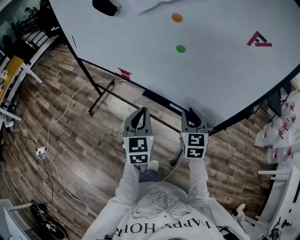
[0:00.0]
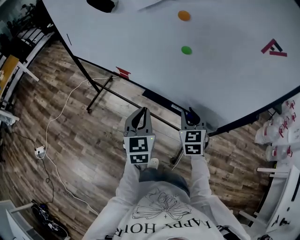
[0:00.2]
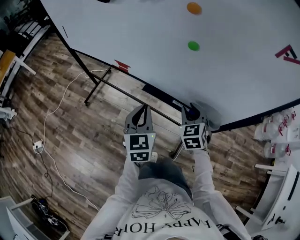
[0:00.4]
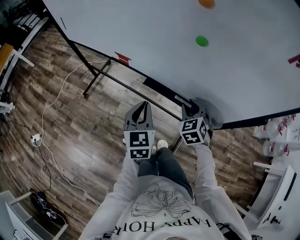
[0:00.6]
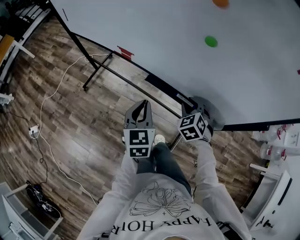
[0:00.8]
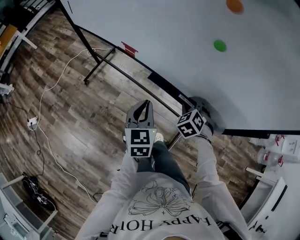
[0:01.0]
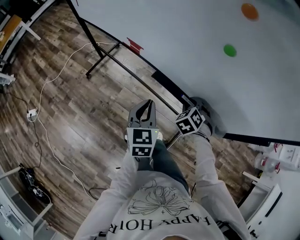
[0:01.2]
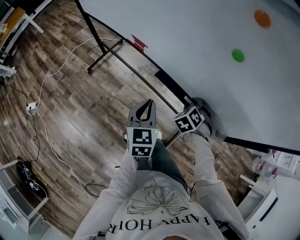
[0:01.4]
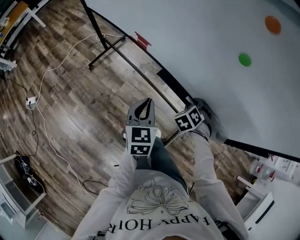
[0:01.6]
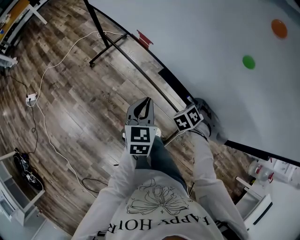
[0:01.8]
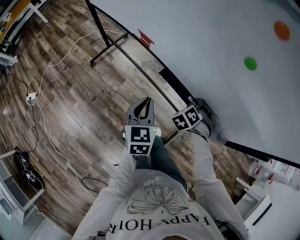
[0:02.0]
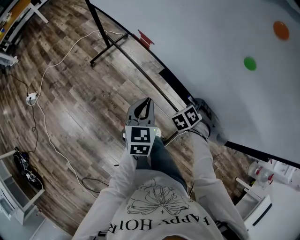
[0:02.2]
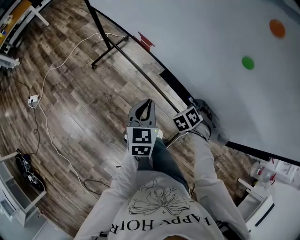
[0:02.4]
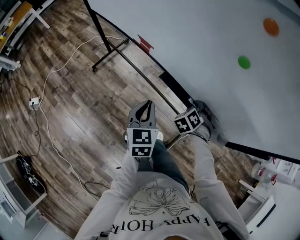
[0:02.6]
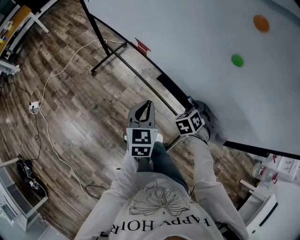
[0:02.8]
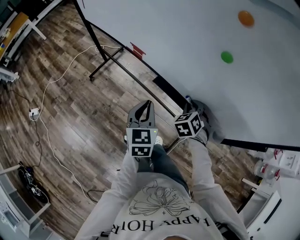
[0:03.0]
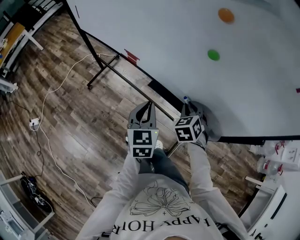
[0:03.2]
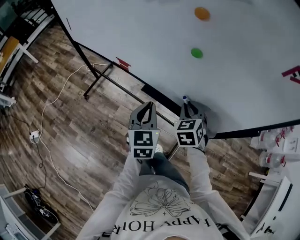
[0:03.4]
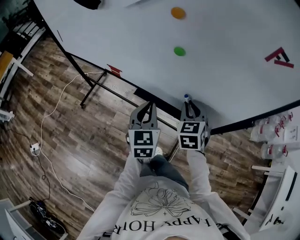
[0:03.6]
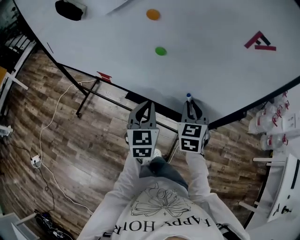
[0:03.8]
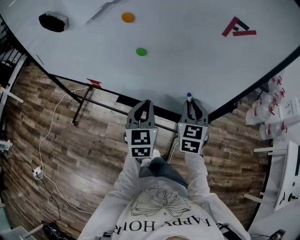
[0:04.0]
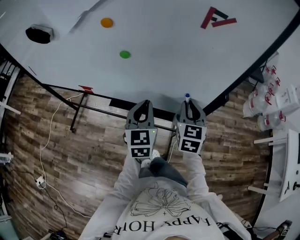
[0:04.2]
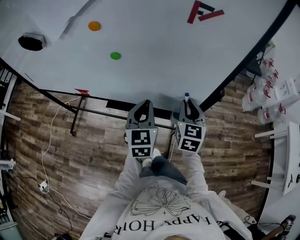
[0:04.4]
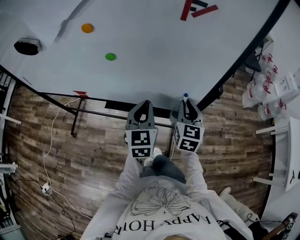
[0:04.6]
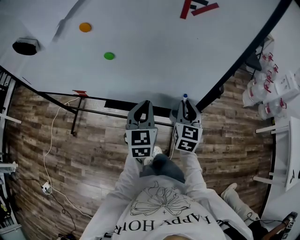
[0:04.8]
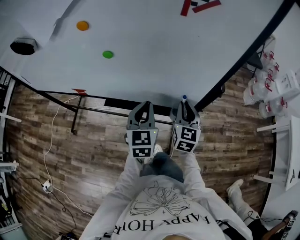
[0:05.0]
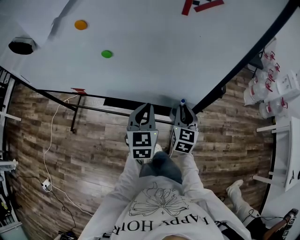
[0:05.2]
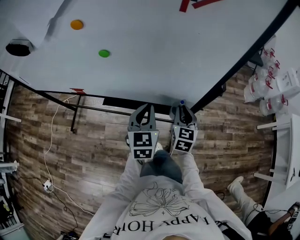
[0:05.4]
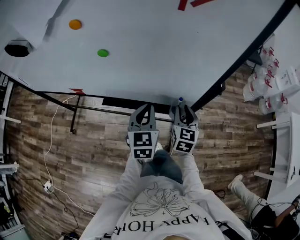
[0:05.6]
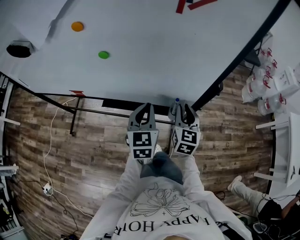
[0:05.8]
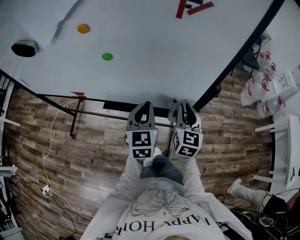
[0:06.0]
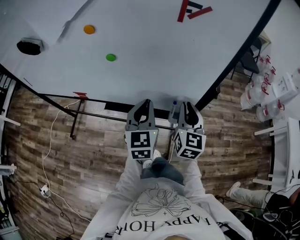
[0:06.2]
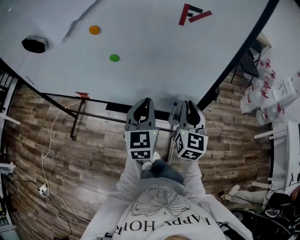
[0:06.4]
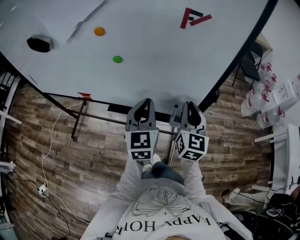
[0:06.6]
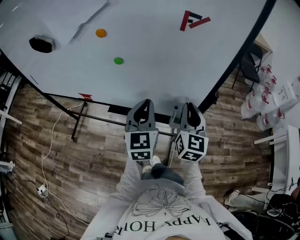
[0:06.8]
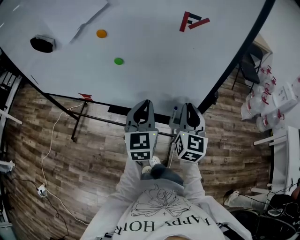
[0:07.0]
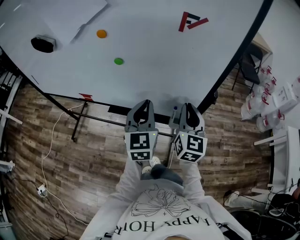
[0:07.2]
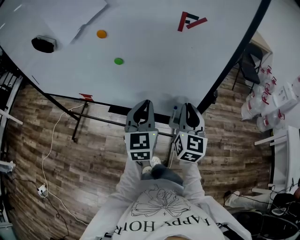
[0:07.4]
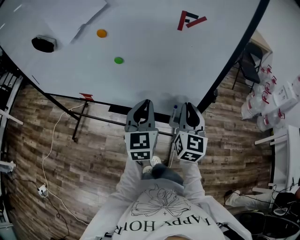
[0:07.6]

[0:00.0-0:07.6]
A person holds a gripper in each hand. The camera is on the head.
0.0 to 1.6 s: The left gripper travels downward and forward by some 15 cm. The right gripper is displaced downward and forward by about 25 cm, and points its fingers about 40 degrees further downward.
1.6 to 3.0 s: The right gripper is displaced upward by some 5 cm.
3.0 to 4.6 s: The grippers both shift to the right and upward by about 25 cm. The right gripper rotates around the line of its fingers by some 50 degrees, clockwise from behind; the left gripper turns by about 30 degrees.
4.6 to 6.0 s: The right gripper moves roughly 10 cm downward and comes back.
6.0 to 7.6 s: Both grippers move upward, about 10 cm.

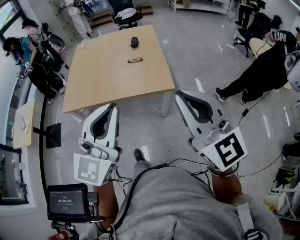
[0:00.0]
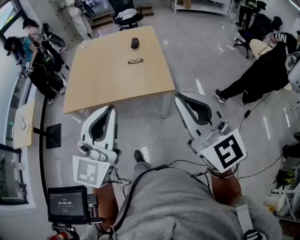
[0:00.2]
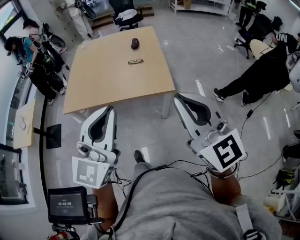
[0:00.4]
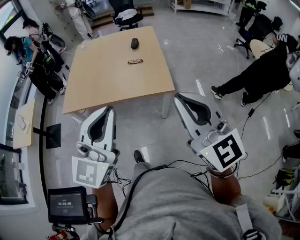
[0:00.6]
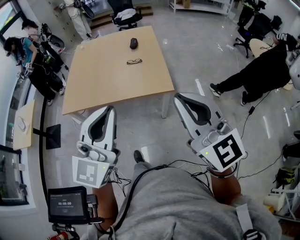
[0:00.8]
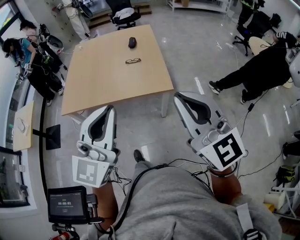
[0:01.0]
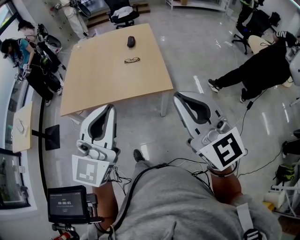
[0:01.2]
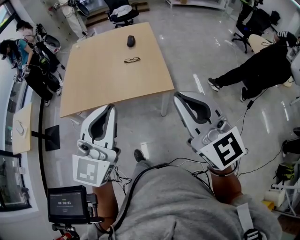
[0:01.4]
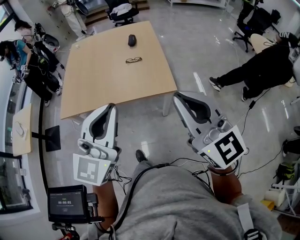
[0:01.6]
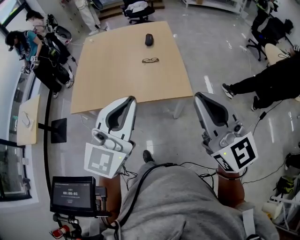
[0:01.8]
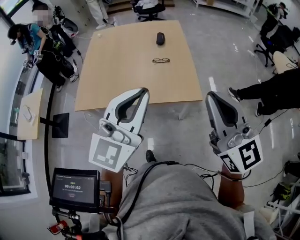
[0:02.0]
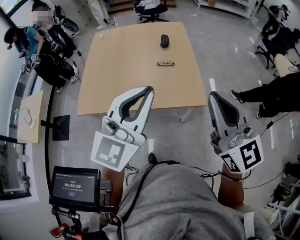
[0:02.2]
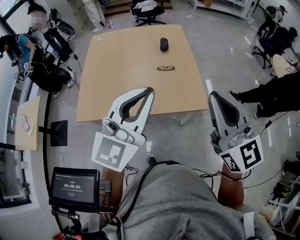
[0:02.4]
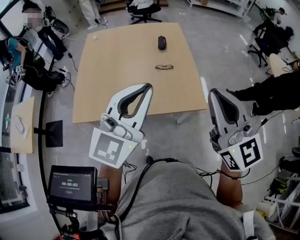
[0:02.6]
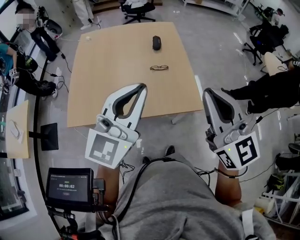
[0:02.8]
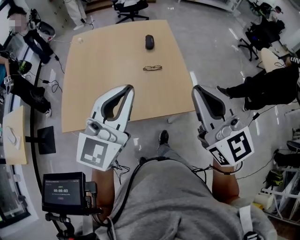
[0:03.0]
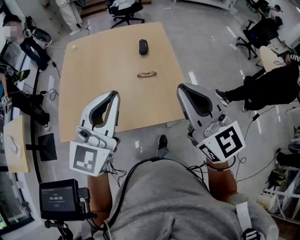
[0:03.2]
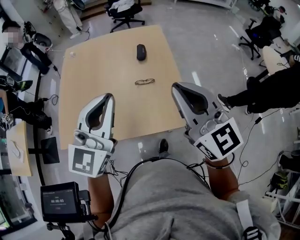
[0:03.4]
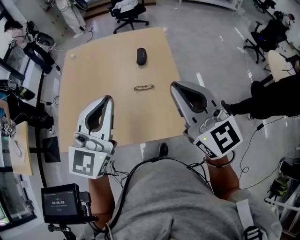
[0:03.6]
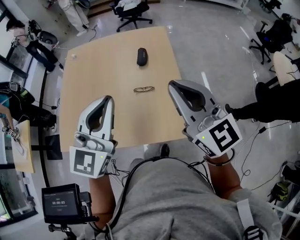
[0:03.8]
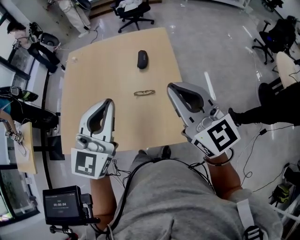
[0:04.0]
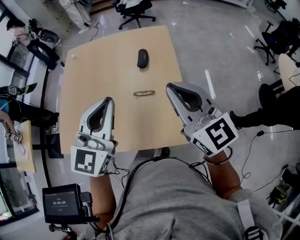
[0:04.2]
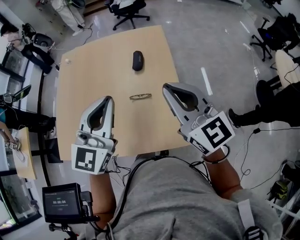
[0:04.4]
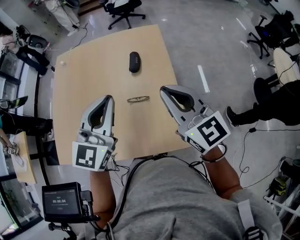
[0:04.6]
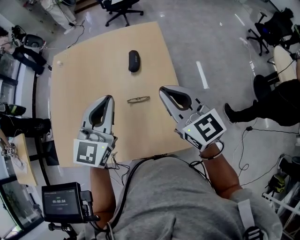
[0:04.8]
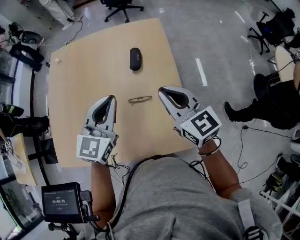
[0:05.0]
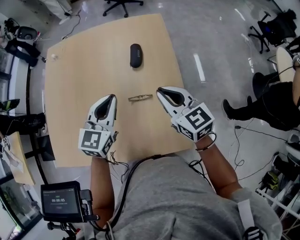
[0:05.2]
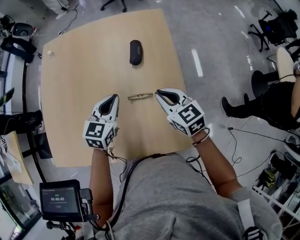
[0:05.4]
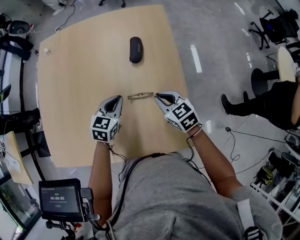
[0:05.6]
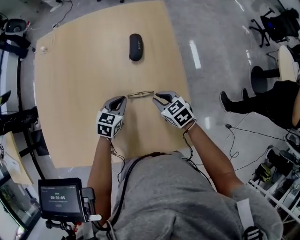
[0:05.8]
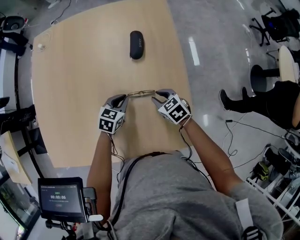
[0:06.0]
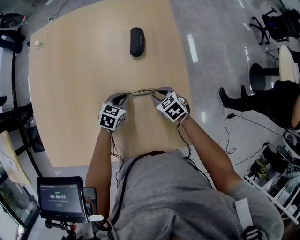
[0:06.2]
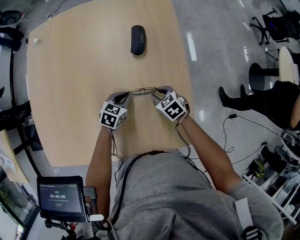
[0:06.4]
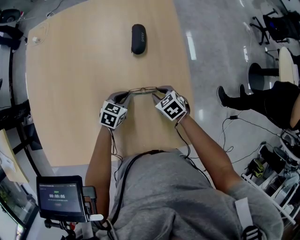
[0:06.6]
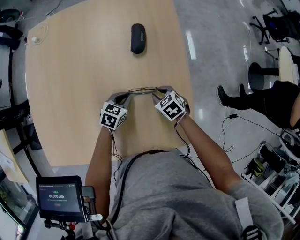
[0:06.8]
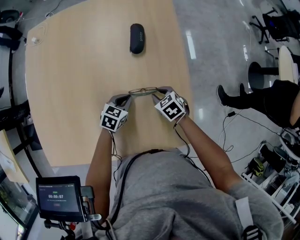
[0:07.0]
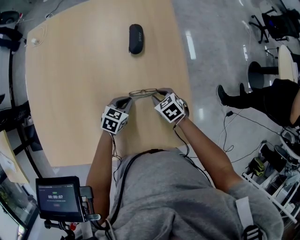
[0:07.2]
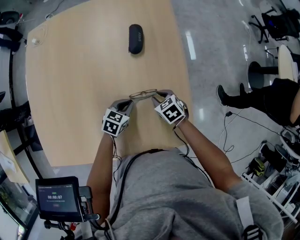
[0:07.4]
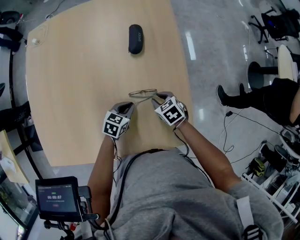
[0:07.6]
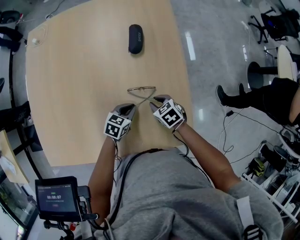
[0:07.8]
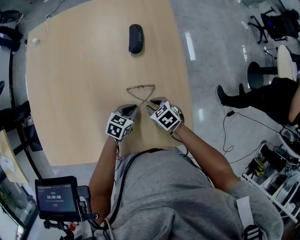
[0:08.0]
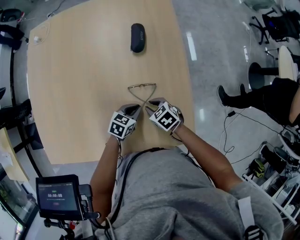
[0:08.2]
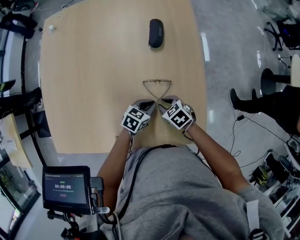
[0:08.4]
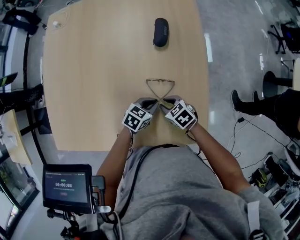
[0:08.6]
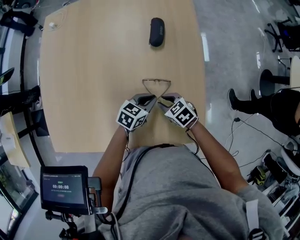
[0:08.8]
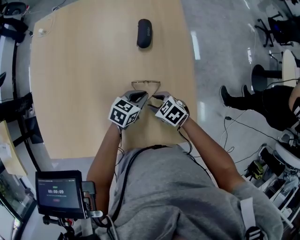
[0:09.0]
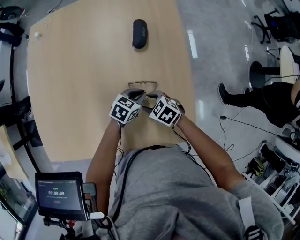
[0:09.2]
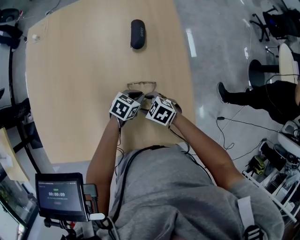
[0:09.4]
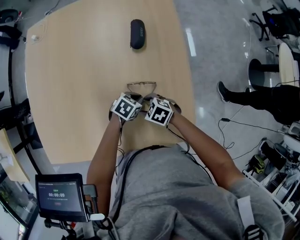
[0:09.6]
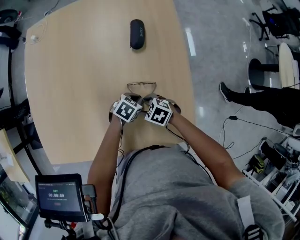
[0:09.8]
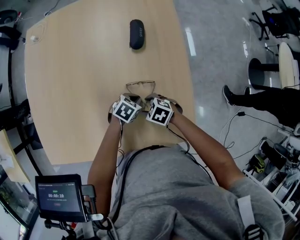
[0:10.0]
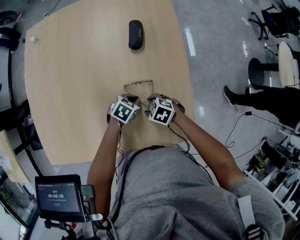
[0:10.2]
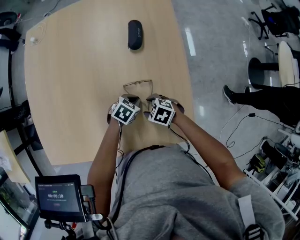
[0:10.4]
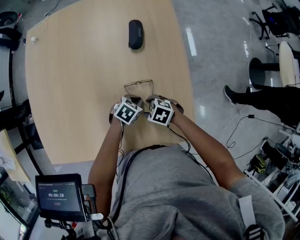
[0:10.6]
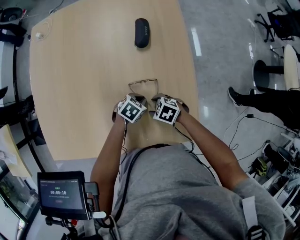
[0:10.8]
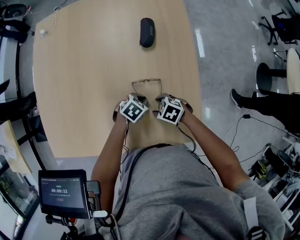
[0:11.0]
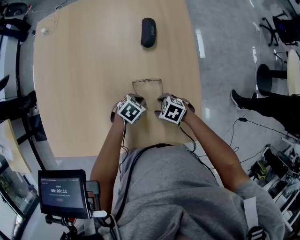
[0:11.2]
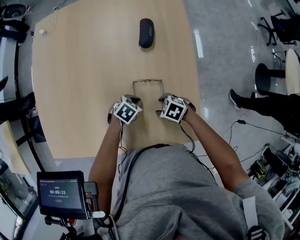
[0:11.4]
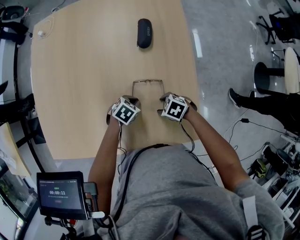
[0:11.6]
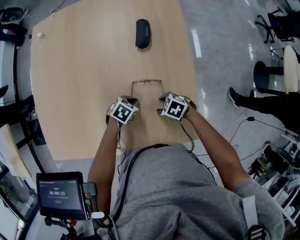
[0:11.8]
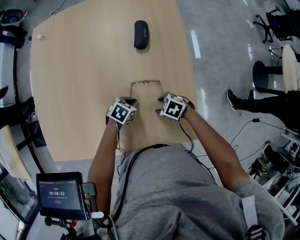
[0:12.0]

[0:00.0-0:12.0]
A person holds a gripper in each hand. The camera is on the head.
0.0 to 1.6 s: The two grippers go approximately 5 cm forward.
1.6 to 3.0 s: Both grippers travel together forward and to the left, approximately 30 cm.
3.0 to 4.4 s: Both grippers travel together forward and to the right, about 30 cm.
4.4 to 6.0 s: The two grippers go approximately 40 cm downward. The right gripper tips its fingers downward by approximately 50 degrees, while the left gripper points its fingers about 40 degrees further downward.
6.0 to 7.6 s: The left gripper is displaced backward by approximately 5 cm; the right gripper shifts by about 5 cm.
7.6 to 9.0 s: The right gripper changes place by approximately 5 cm. The left gripper ends up some 5 cm from where it was.
9.0 to 10.4 s: The left gripper travels downward by roughly 5 cm, and changes its angle by some 20 degrees.
10.4 to 12.0 s: The grippers stay close to where they were, moving slightly.

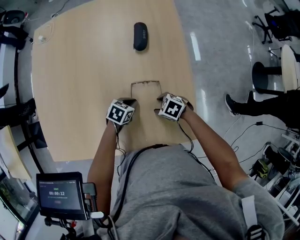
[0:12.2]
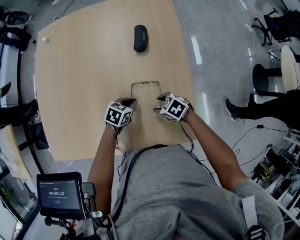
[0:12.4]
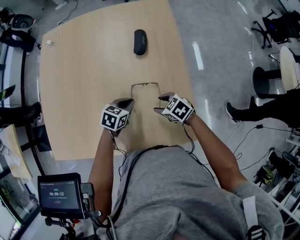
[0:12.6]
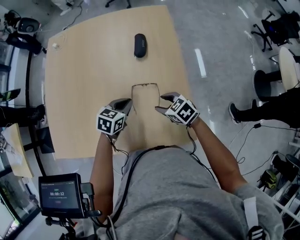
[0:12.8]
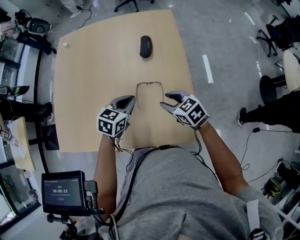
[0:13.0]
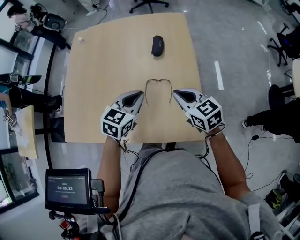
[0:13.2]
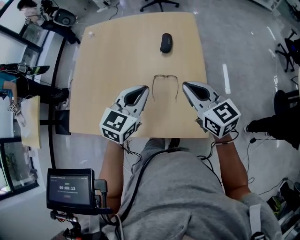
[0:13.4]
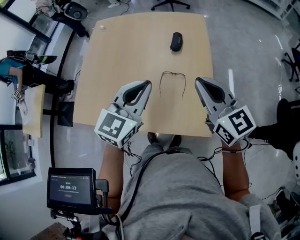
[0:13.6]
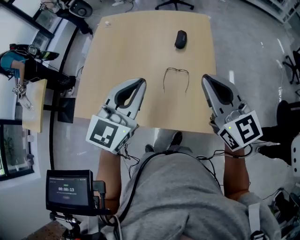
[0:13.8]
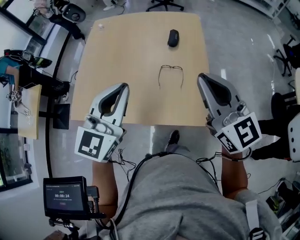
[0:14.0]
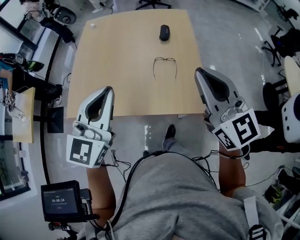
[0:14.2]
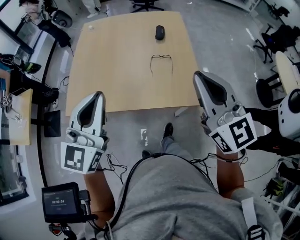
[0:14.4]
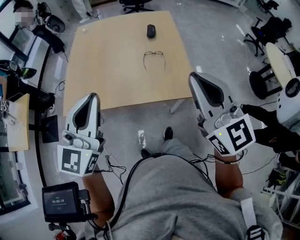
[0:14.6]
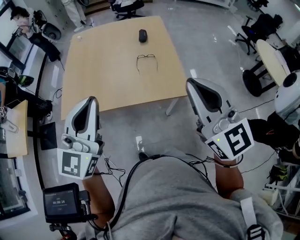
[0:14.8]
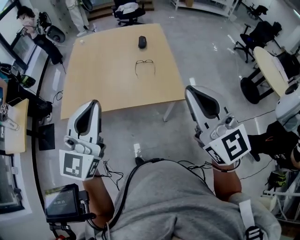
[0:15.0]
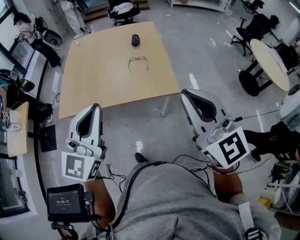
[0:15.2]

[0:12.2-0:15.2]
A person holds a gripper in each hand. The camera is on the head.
12.2 to 13.8 s: Both grippers travel together upward, some 50 cm. The left gripper points its fingers approximately 50 degrees further upward. The right gripper angles its fingers upward, by roughly 60 degrees, and closes its fingers.
13.8 to 15.2 s: Both grippers move backward, roughly 40 cm.

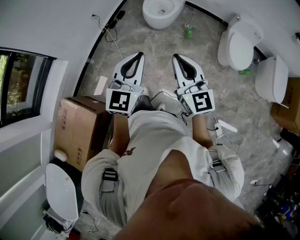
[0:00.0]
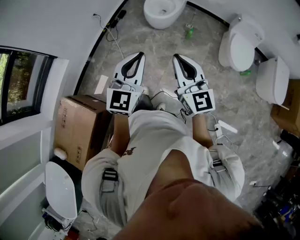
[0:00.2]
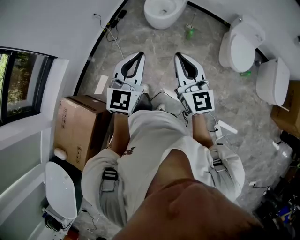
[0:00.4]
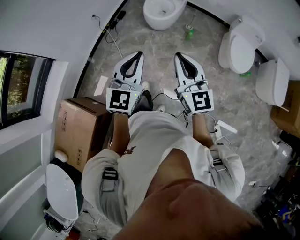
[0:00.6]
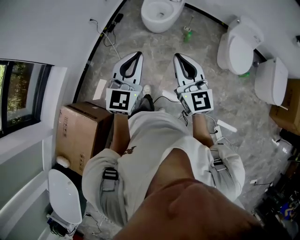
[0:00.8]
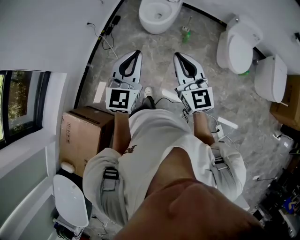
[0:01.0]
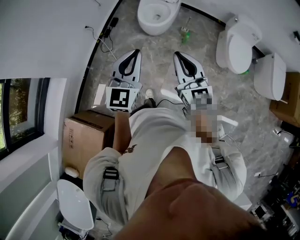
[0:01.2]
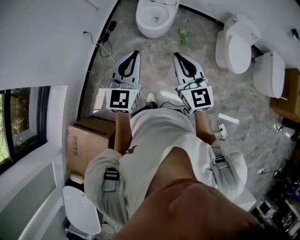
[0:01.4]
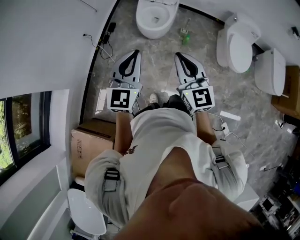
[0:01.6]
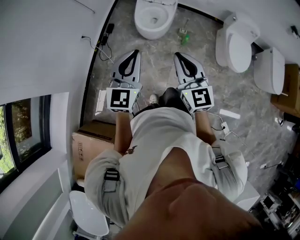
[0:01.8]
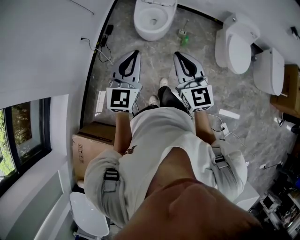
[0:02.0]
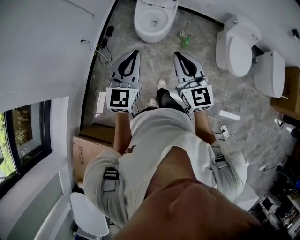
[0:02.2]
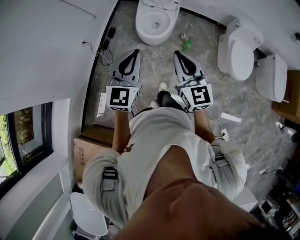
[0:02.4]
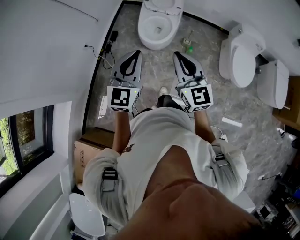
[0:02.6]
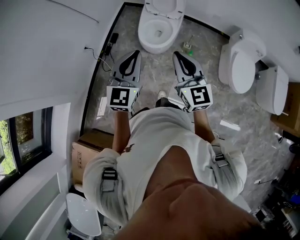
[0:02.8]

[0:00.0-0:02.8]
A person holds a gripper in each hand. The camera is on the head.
0.0 to 1.4 s: Both grippers travel together forward, roughly 20 cm.
1.4 to 2.8 s: Both grippers travel together forward, about 20 cm.
